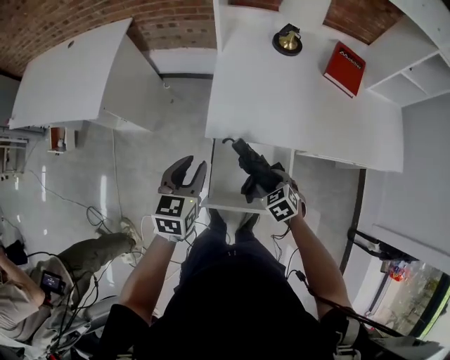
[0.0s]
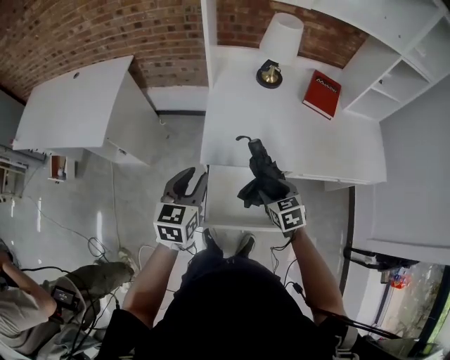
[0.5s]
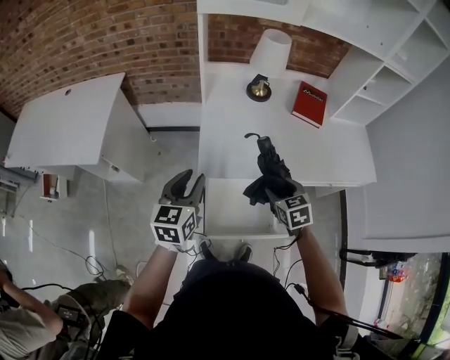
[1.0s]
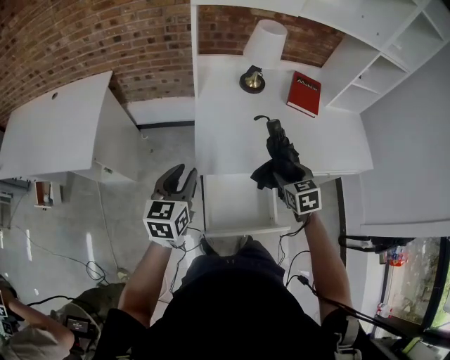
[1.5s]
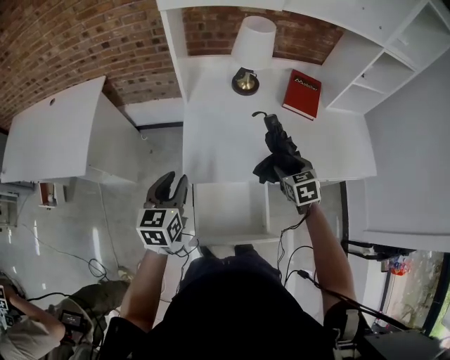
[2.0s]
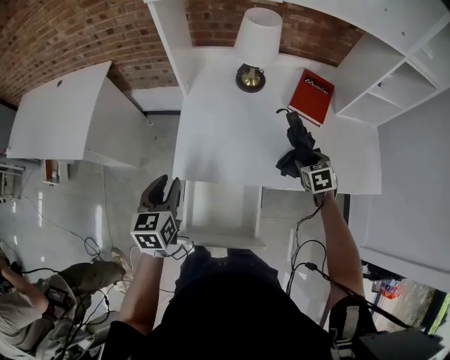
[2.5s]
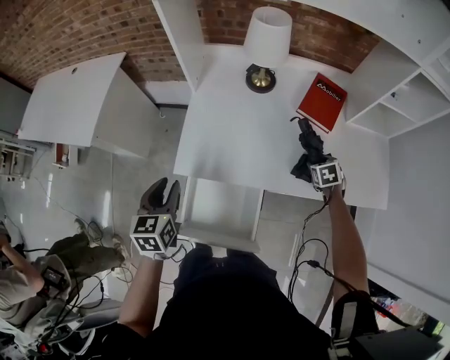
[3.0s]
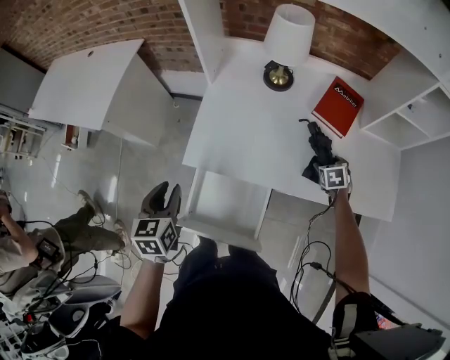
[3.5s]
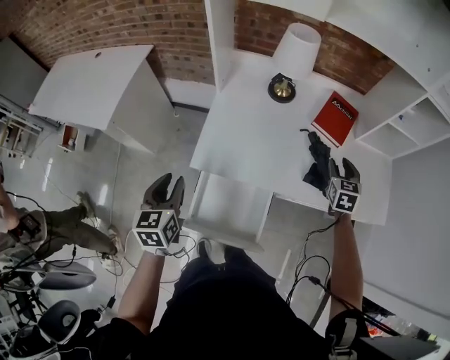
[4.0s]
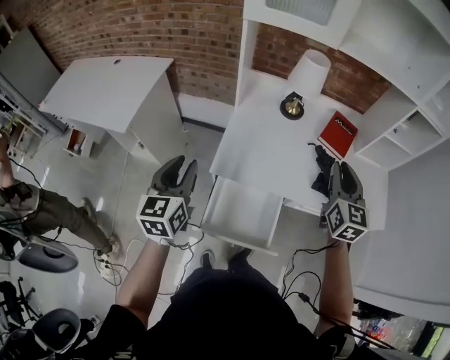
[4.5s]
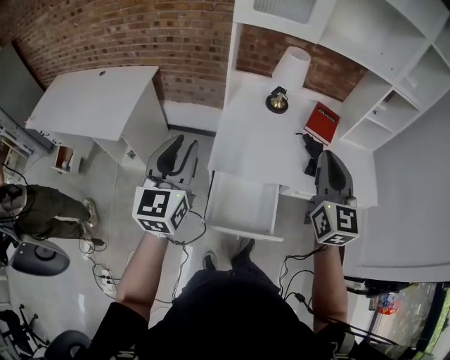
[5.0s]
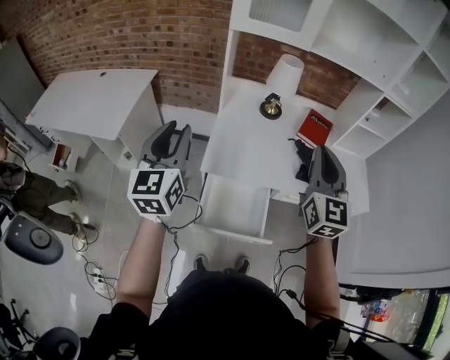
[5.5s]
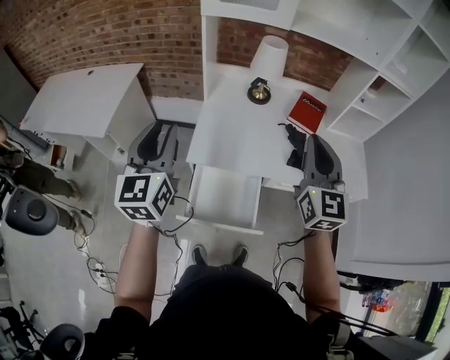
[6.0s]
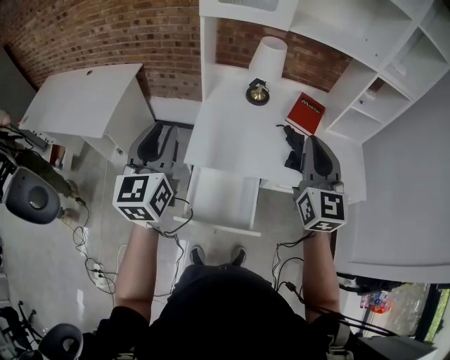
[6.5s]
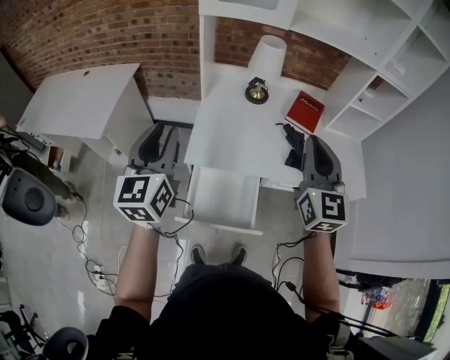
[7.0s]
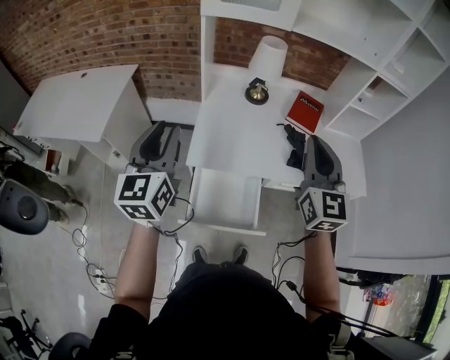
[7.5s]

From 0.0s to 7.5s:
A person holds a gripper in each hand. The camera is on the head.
From 0.0s to 2.0s: The right gripper moves to the right, forward and upward, some 25 cm, and swivels roughly 30 degrees. Meanwhile the left gripper goes roughly 10 cm forward and upward.
From 2.0s to 4.0s: The left gripper moves backward, some 5 cm, and turns by about 20 degrees, while the right gripper is displaced to the right and forward by about 20 cm.
From 4.0s to 5.5s: The right gripper travels upward, to the left and backward by approximately 40 cm, points its fingers about 40 degrees further upward, and closes, while the left gripper shifts roughly 25 cm upward, and changes its angle by some 30 degrees.
From 5.5s to 7.5s: The grippers stay close to where they were, moving slightly.

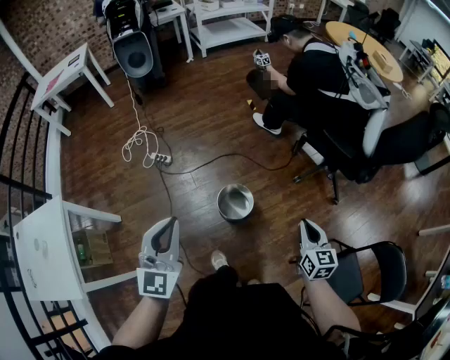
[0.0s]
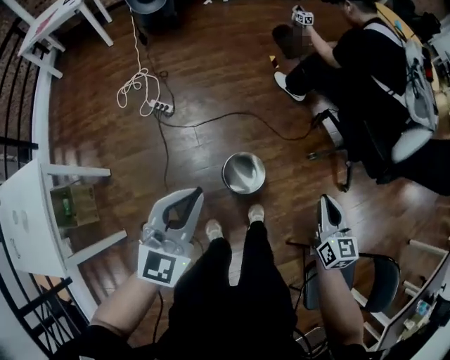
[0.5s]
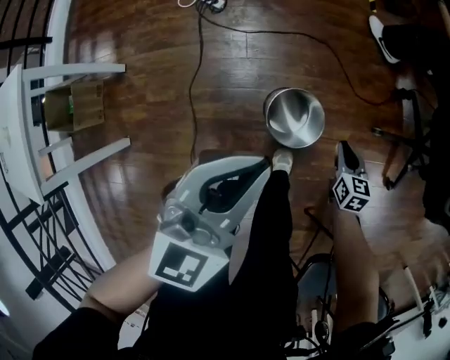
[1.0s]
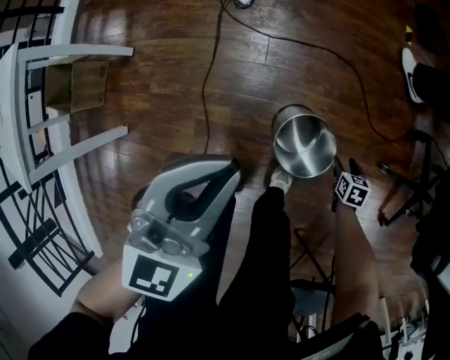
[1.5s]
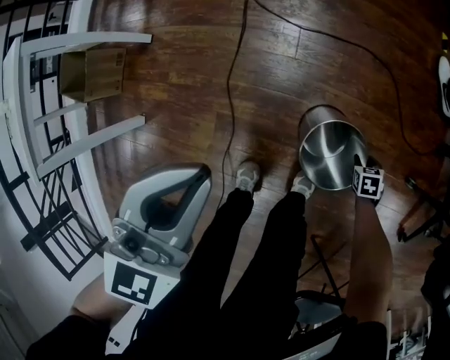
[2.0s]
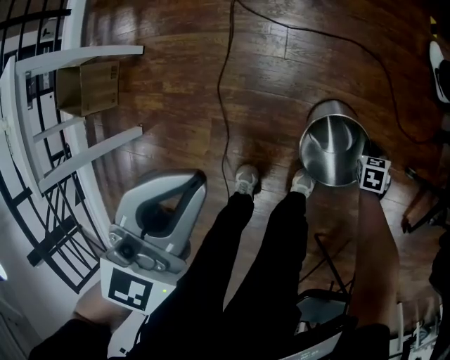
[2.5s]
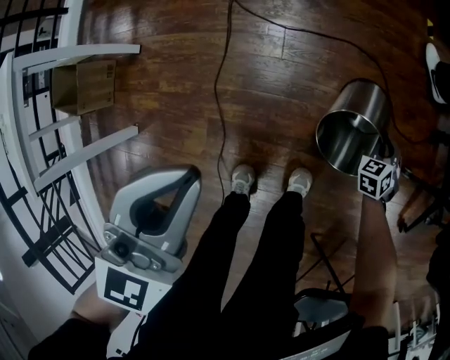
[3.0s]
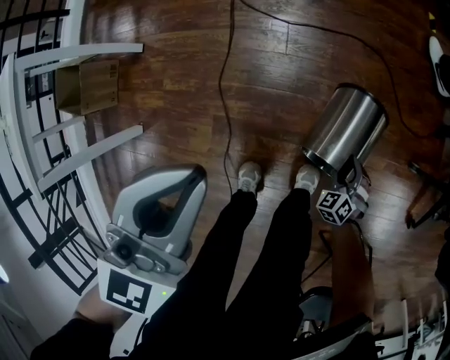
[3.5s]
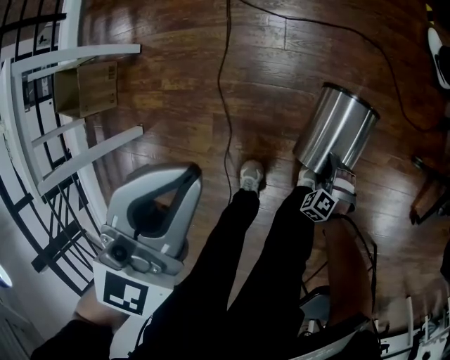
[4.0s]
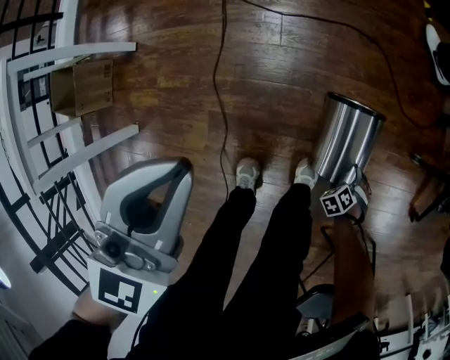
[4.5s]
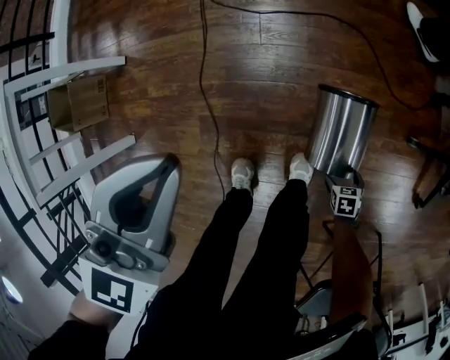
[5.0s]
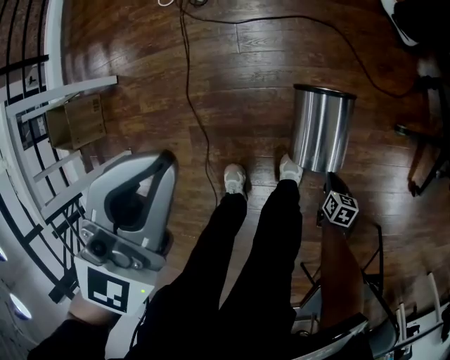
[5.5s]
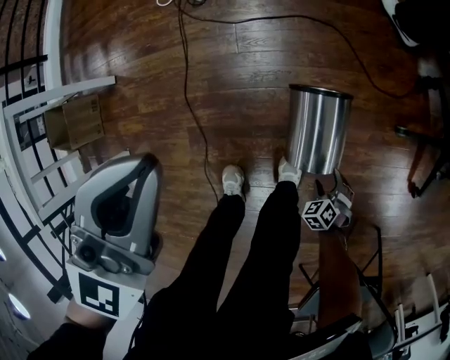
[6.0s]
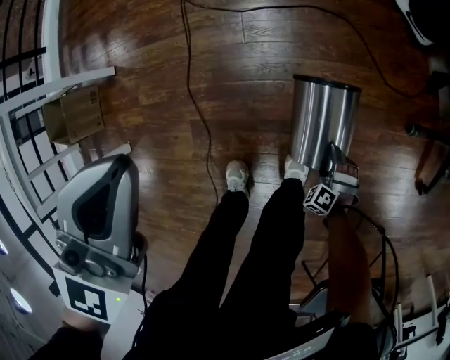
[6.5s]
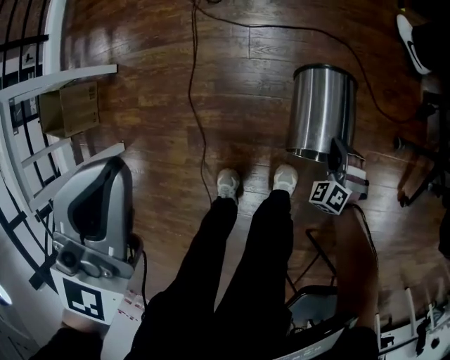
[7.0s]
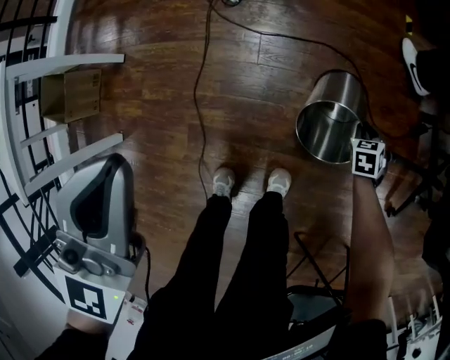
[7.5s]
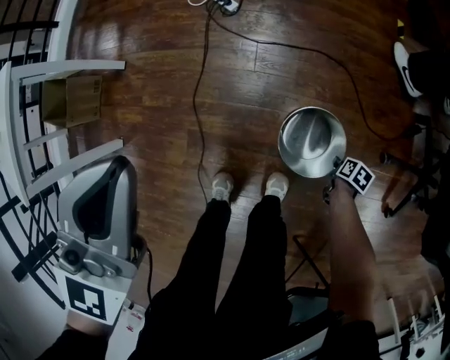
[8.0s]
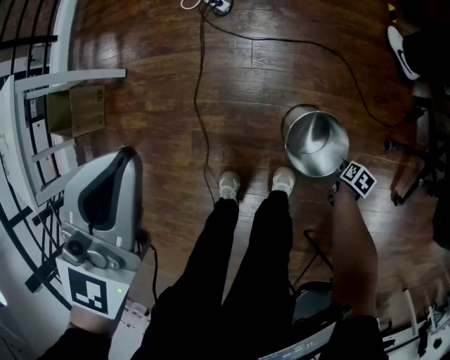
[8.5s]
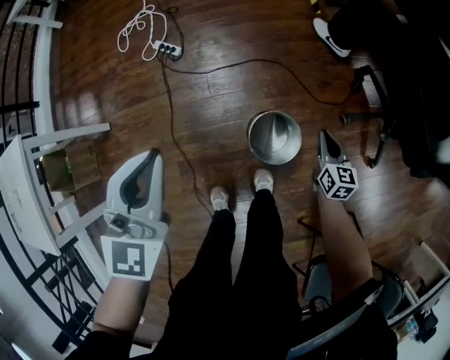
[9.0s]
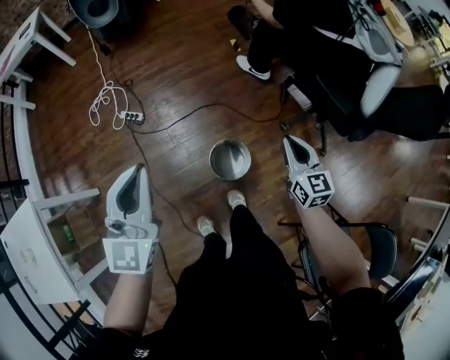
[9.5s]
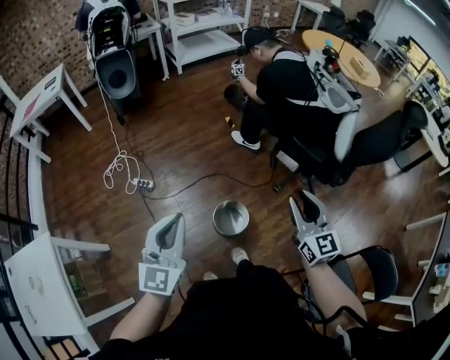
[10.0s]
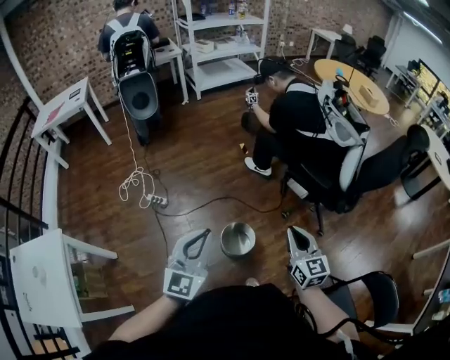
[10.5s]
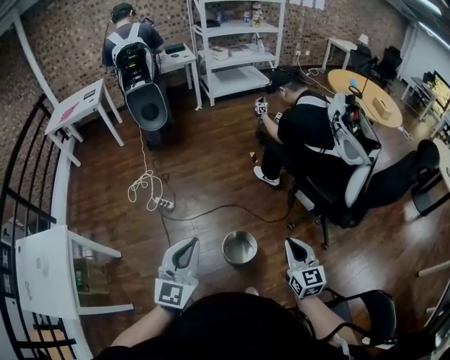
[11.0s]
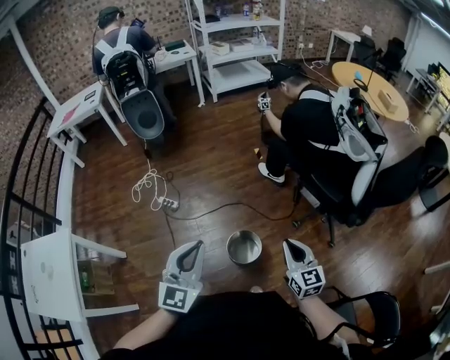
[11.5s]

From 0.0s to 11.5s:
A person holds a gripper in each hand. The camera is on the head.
From 0.0s to 2.0s: The right gripper is displaced downward by roughly 60 cm, and points its fingers some 50 degrees further downward. Meanwhile the left gripper goes roughly 25 cm downward, and rotates roughly 30 degrees.
From 2.0s to 4.0s: The right gripper travels upward and back again, approximately 10 cm each way, rotates around the line of its fingers by roughly 50 degrees, counterclockwise from behind, and opens.
From 4.0s to 6.0s: The right gripper shifts by roughly 15 cm, swivels roughly 30 degrees, and closes, then opens again, while the left gripper moves about 10 cm.
From 6.0s to 7.5s: The left gripper moves approximately 10 cm, while the right gripper changes place by roughly 35 cm, swivels about 20 degrees, and closes its fingers.
From 7.5s to 9.5s: The left gripper heads upward, covering some 20 cm, and swivels some 30 degrees, while the right gripper goes approximately 50 cm upward, and angles its fingers upward, by some 50 degrees.
From 9.5s to 11.5s: The right gripper heads backward and upward, covering some 10 cm. Meanwhile the left gripper heads to the right and backward, covering roughly 10 cm.

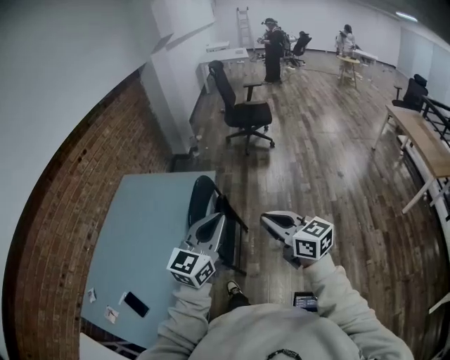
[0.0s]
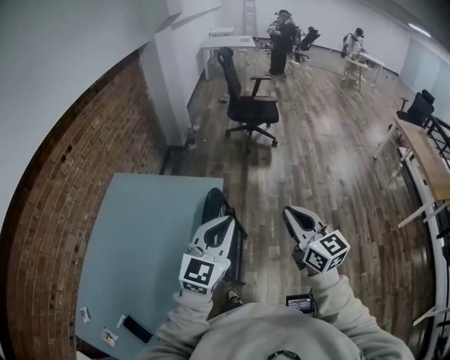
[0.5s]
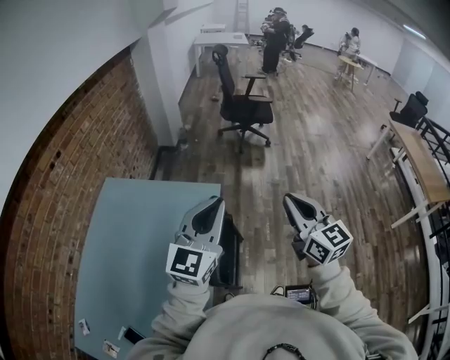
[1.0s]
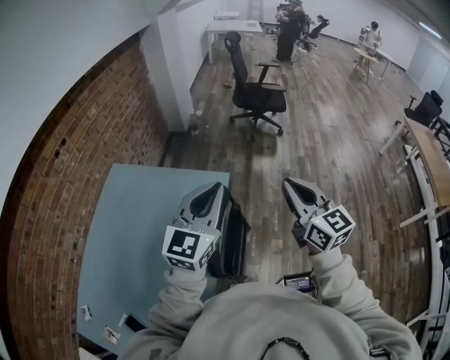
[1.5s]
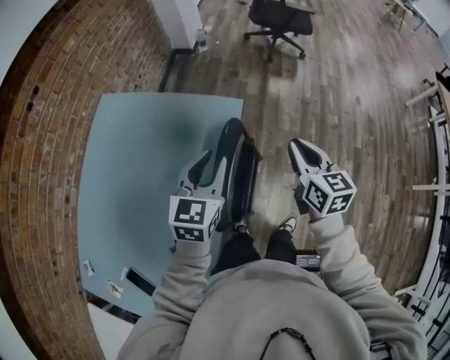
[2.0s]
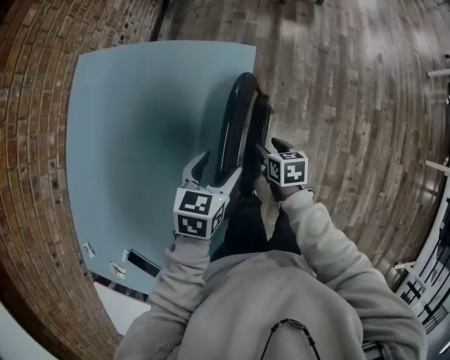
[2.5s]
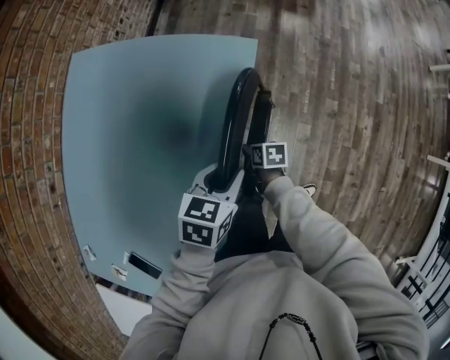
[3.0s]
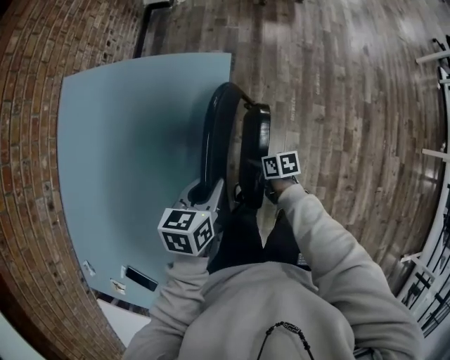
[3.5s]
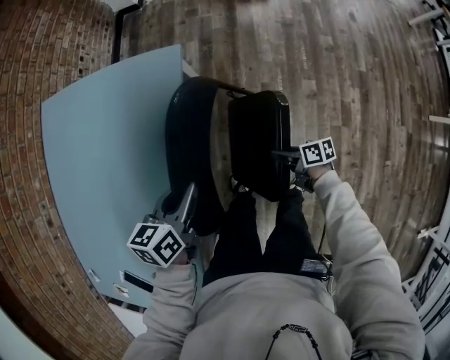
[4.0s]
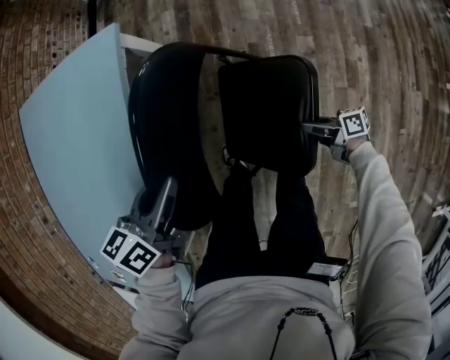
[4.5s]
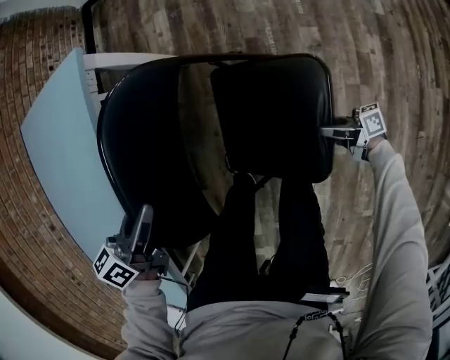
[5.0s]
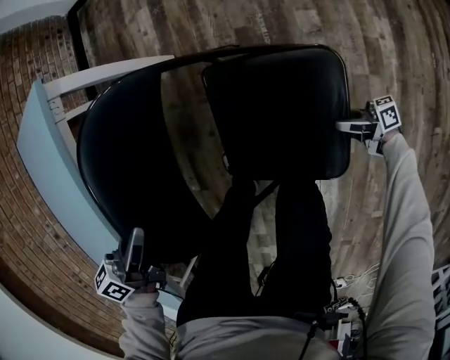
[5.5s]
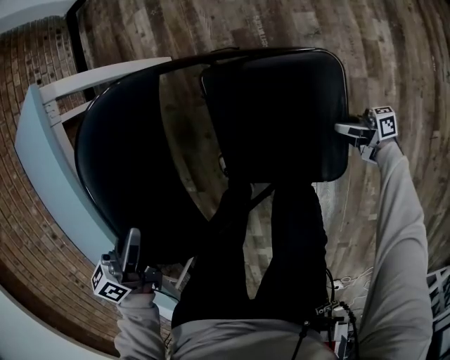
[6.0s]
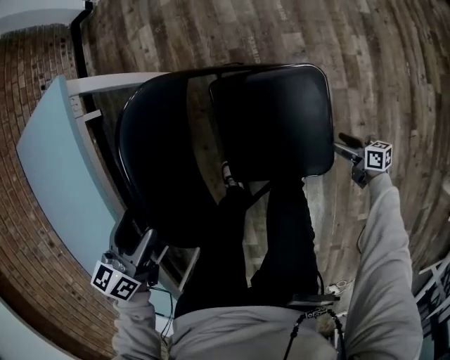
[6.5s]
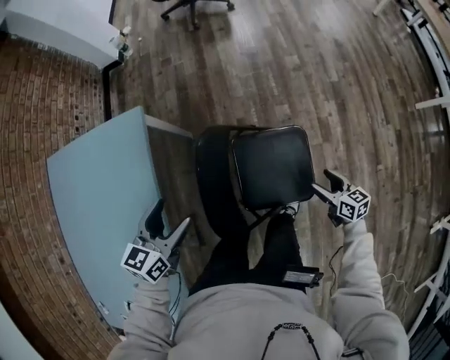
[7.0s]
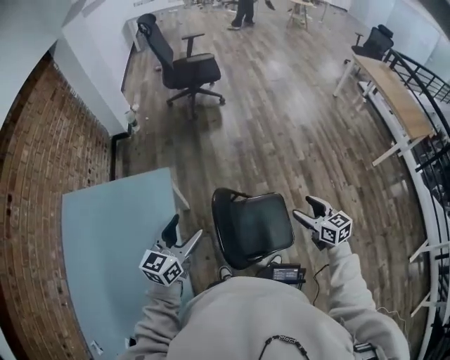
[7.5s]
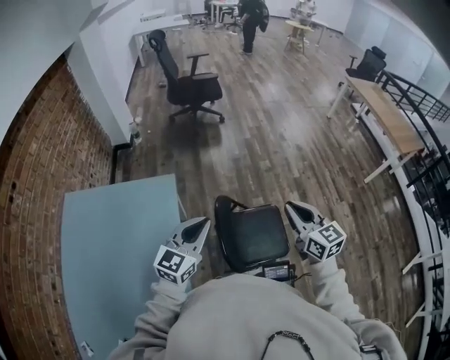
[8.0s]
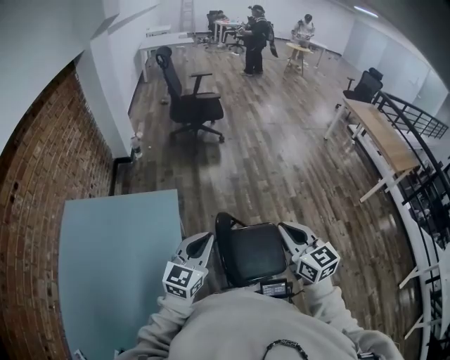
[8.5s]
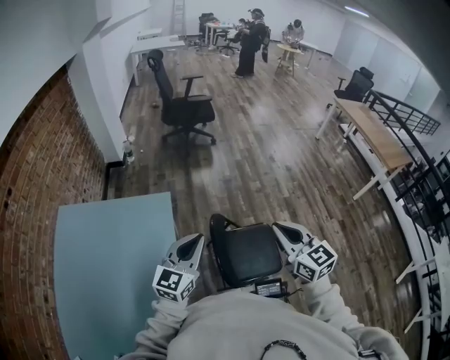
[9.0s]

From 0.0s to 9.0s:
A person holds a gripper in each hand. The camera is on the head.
From 0.0s to 2.0s: The left gripper goes roughly 40 cm forward, downward and to the left, and changes its angle by some 30 degrees. Meanwhile the right gripper travels forward and downward by approximately 40 cm, and rotates some 30 degrees.
From 2.0s to 4.5s: The right gripper shifts about 60 cm downward and to the right, rotates some 70 degrees, and opens its fingers, while the left gripper moves downward, to the right and backward, some 30 cm, turns by approximately 40 degrees, and opens, then closes again.
From 4.5s to 7.0s: The left gripper heads upward, covering about 10 cm, changes its angle by about 30 degrees, and opens up. The right gripper travels upward by roughly 15 cm, rotates approximately 50 degrees, and opens its fingers.
From 7.0s to 9.0s: The left gripper heads upward, covering approximately 25 cm, swivels about 30 degrees, and closes its fingers. Meanwhile the right gripper travels upward and to the left by some 60 cm, swivels roughly 40 degrees, and closes up.
